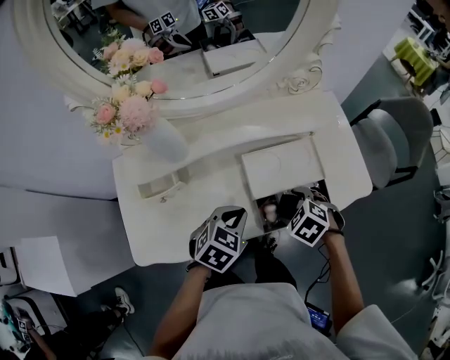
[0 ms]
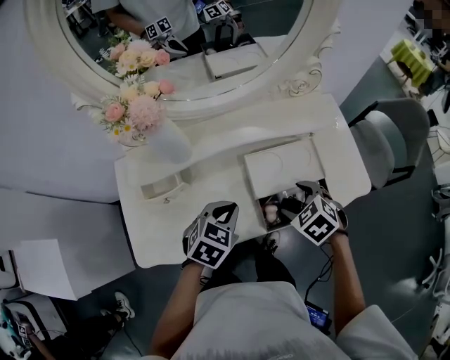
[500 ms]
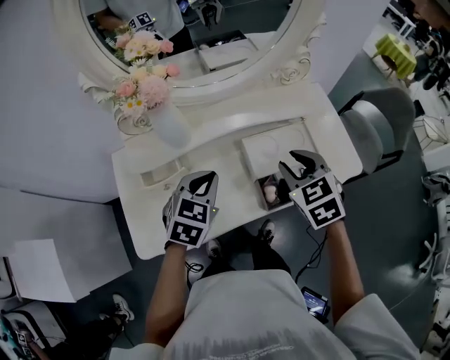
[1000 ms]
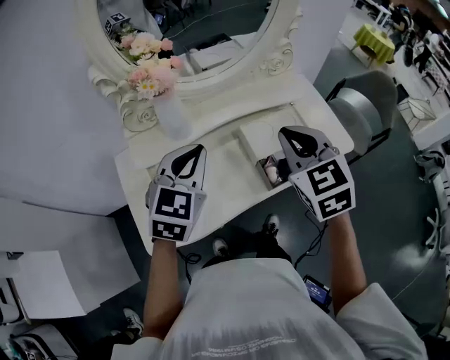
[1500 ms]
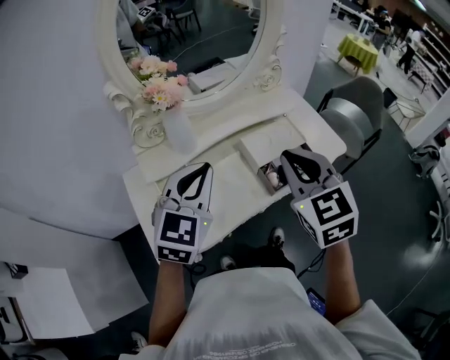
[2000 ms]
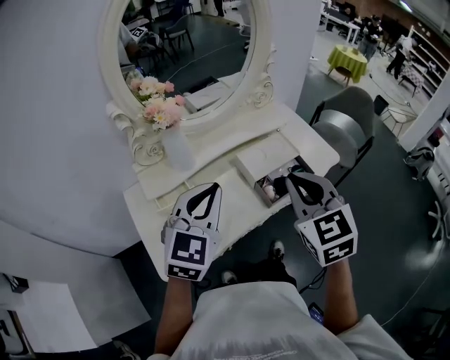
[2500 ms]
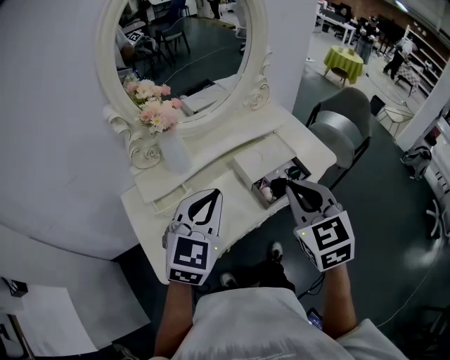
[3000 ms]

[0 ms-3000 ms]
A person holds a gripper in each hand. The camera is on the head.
0 ms to 1500 ms: The right gripper shifts some 30 cm upward, tips its fingers upward by about 40 degrees, and closes its fingers, while the left gripper travels upward and to the left by roughly 25 cm, and turns by about 30 degrees.
1500 ms to 3000 ms: Both grippers travel together backward, approximately 10 cm.

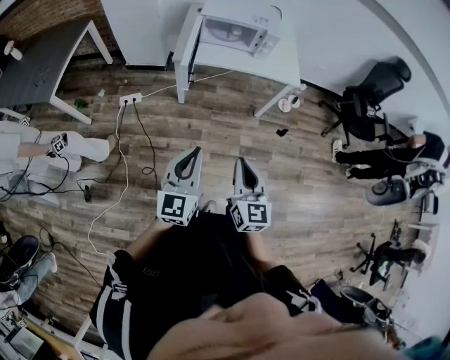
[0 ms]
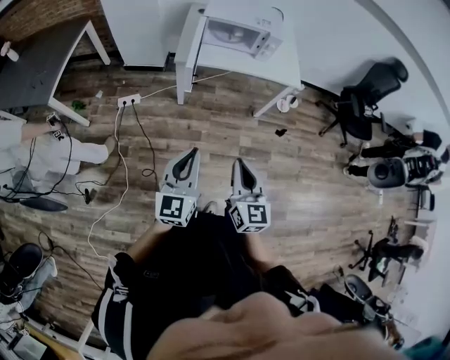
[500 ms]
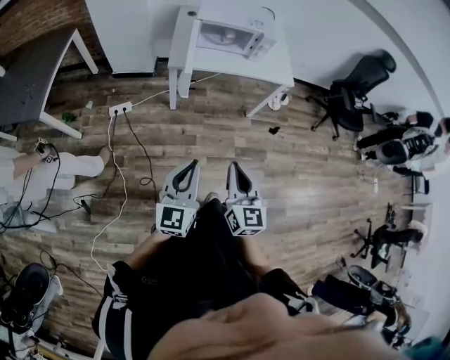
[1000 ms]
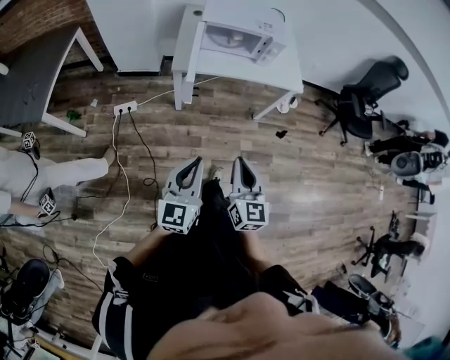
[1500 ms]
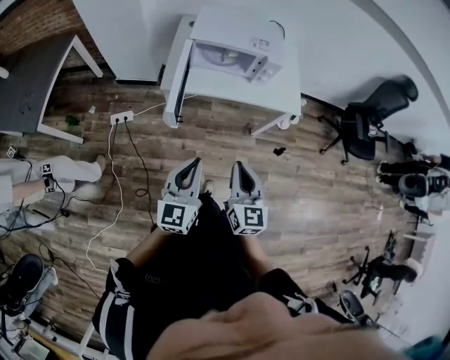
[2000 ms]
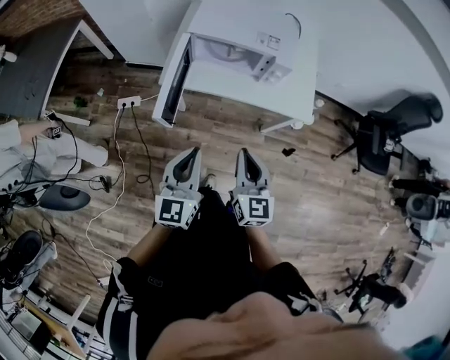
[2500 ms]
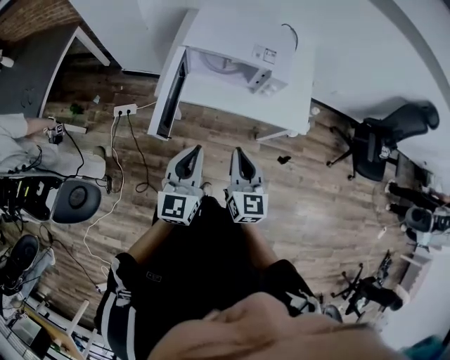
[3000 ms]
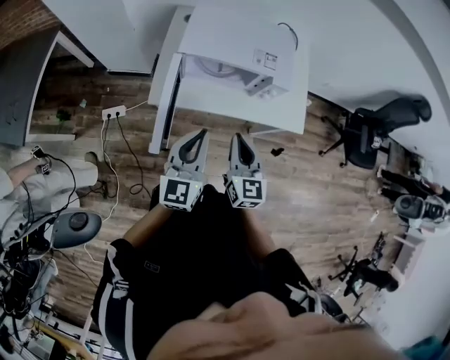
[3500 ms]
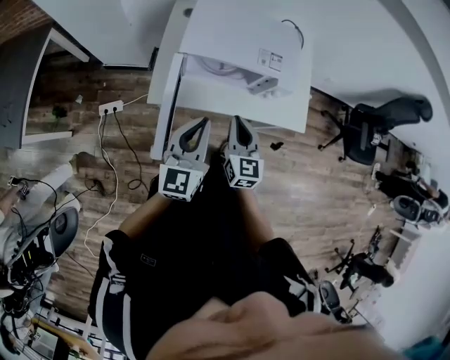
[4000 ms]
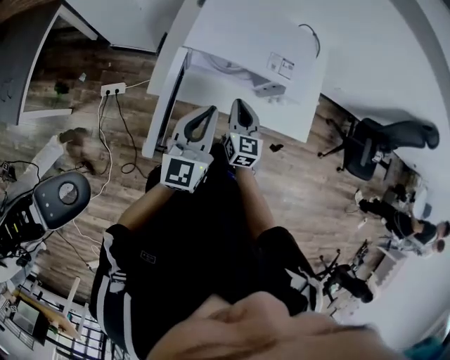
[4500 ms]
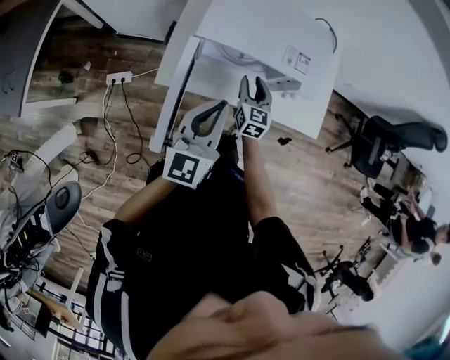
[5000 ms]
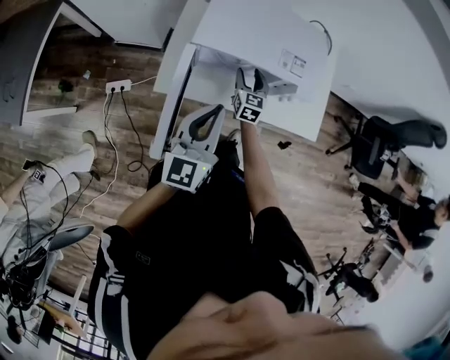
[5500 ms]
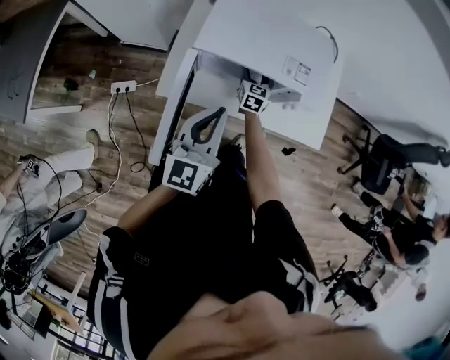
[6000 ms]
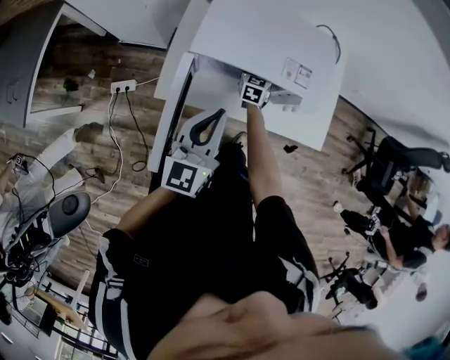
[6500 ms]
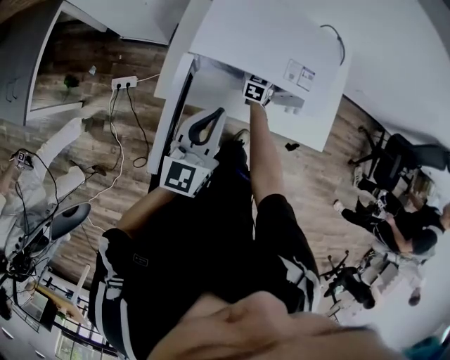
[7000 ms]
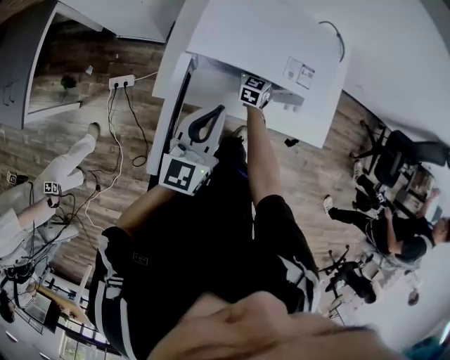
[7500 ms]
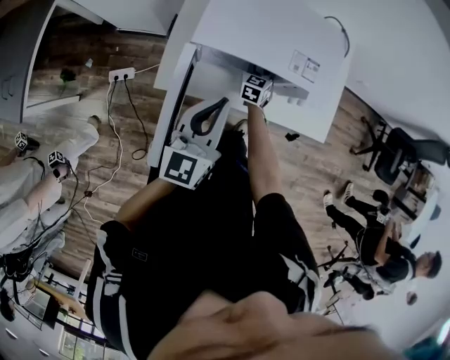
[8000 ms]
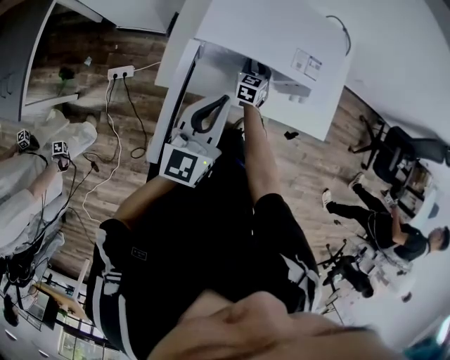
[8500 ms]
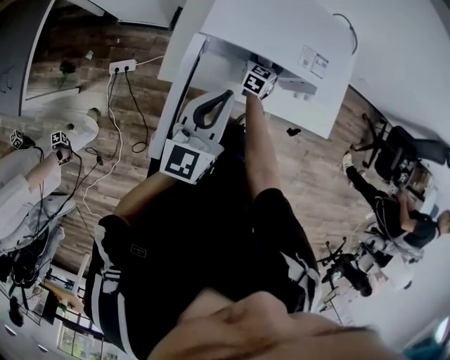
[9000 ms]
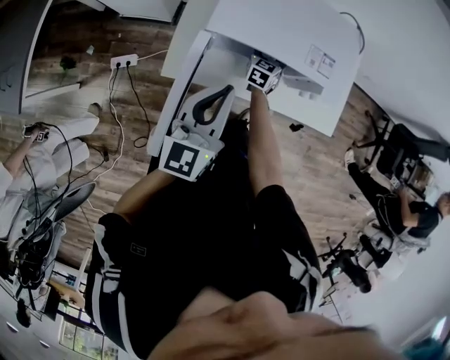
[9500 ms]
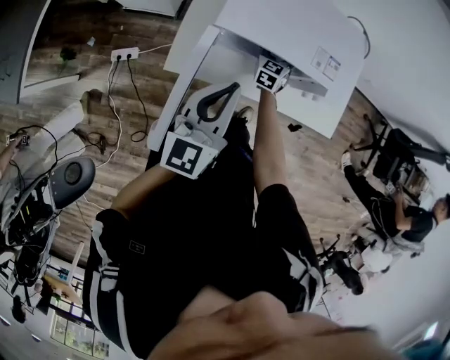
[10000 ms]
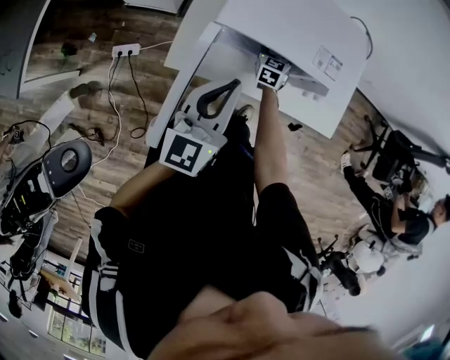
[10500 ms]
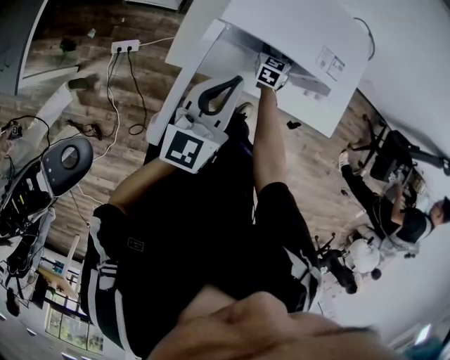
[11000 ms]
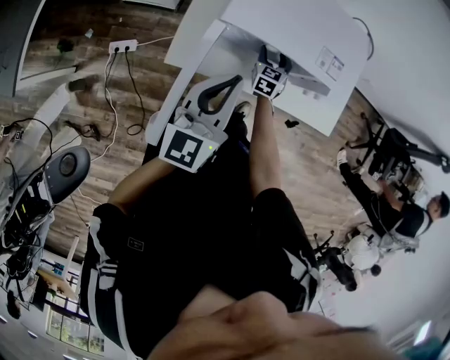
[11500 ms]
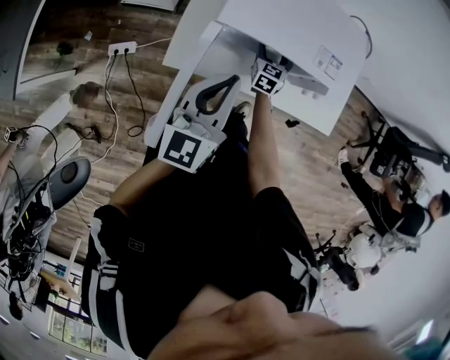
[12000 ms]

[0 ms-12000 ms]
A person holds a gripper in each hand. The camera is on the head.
0 ms to 2000 ms: Both grippers travel together forward, approximately 20 cm.
2000 ms to 4000 ms: Both grippers travel together forward, approximately 30 cm.
4000 ms to 6000 ms: The left gripper heads forward, covering roughly 5 cm. The right gripper heads forward and downward, covering some 30 cm, and opens up.
6000 ms to 8000 ms: The right gripper closes its fingers.
8000 ms to 10000 ms: The right gripper opens.
10000 ms to 12000 ms: The grippers stay close to where they were, moving slightly.

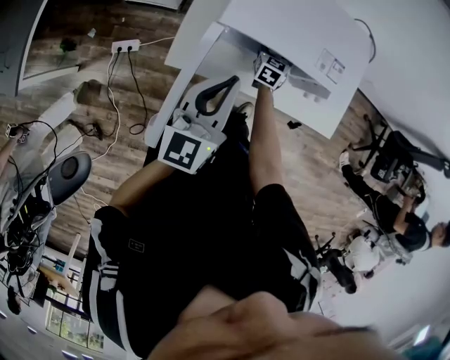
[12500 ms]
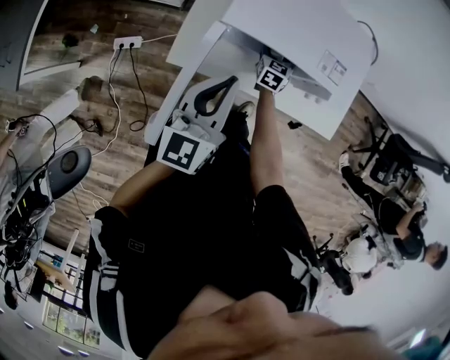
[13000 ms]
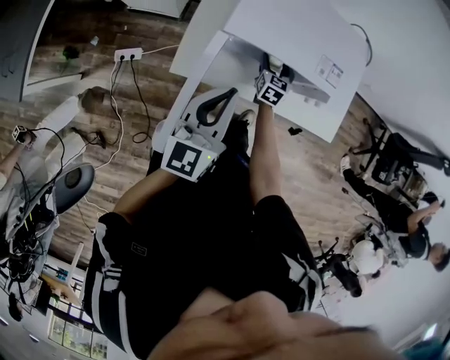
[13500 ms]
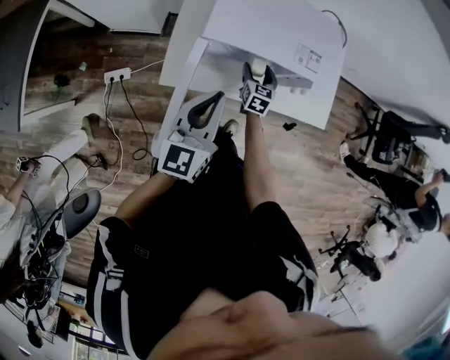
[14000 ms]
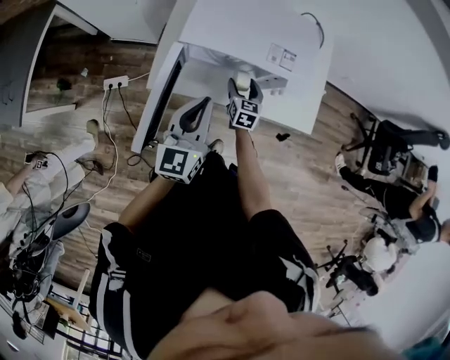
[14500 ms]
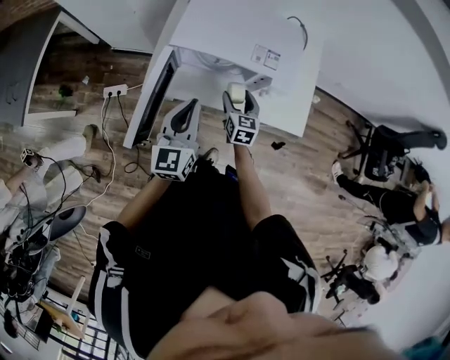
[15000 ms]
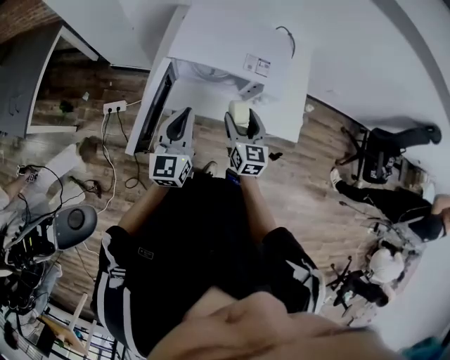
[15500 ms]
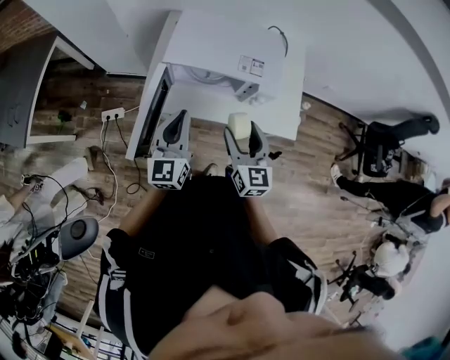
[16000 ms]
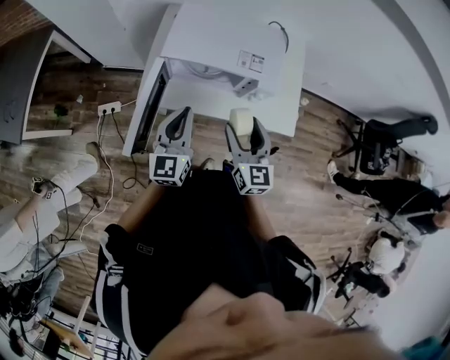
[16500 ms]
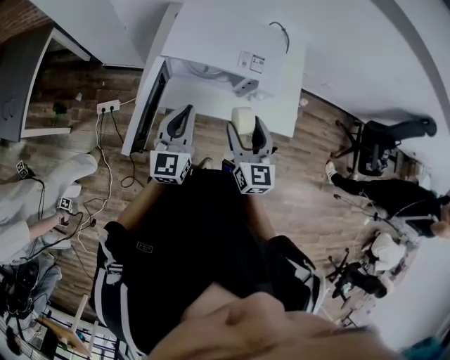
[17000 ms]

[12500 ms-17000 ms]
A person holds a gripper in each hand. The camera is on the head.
12500 ms to 14500 ms: The left gripper travels to the right by about 5 cm. Meanwhile the right gripper travels backward and upward by about 15 cm.
14500 ms to 17000 ms: The right gripper shifts some 30 cm upward and backward, and turns by roughly 20 degrees.

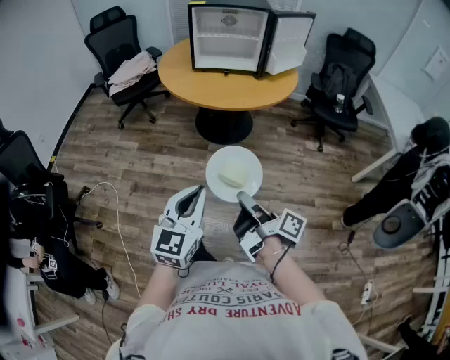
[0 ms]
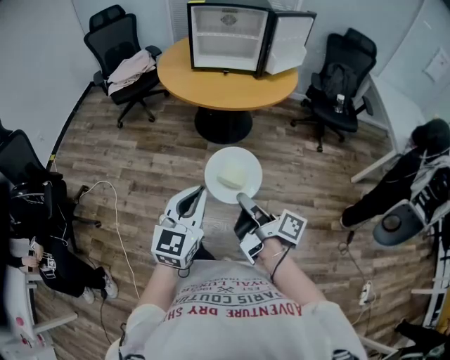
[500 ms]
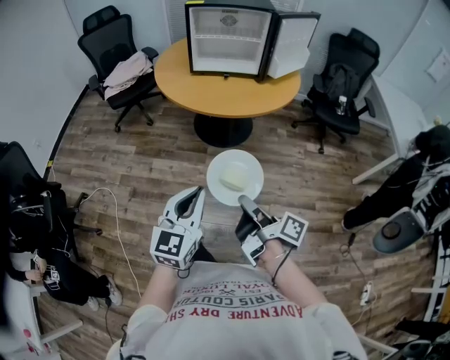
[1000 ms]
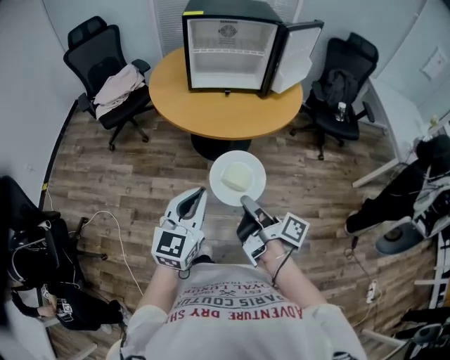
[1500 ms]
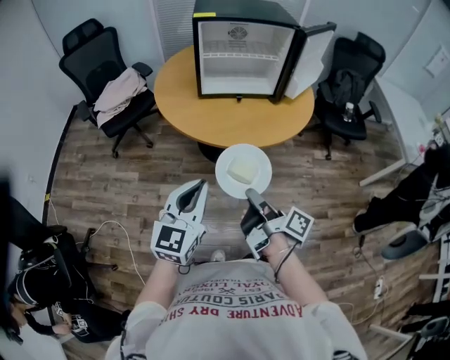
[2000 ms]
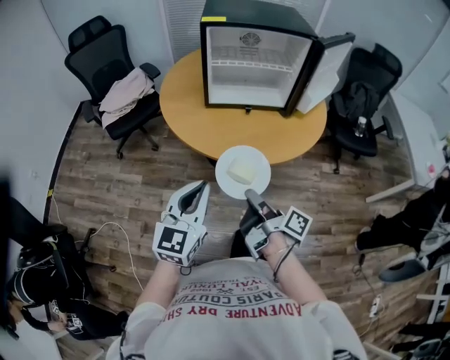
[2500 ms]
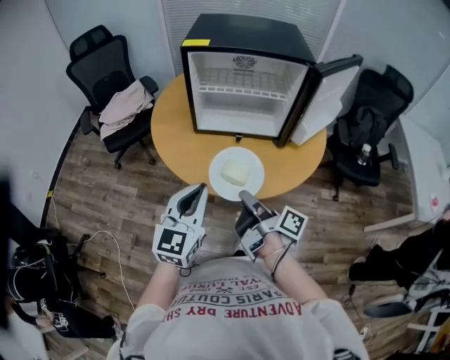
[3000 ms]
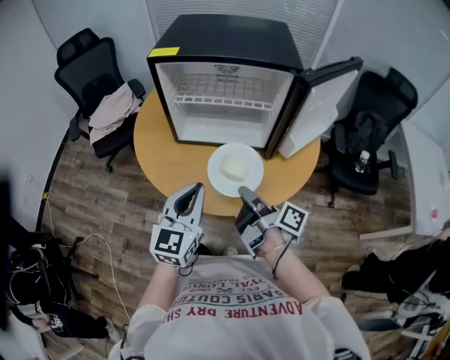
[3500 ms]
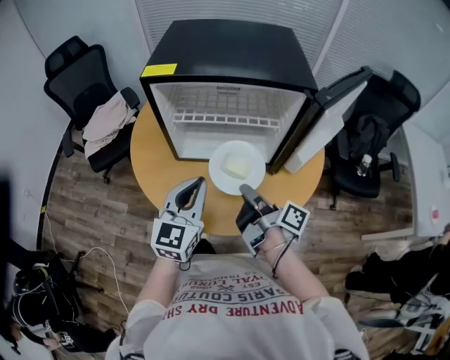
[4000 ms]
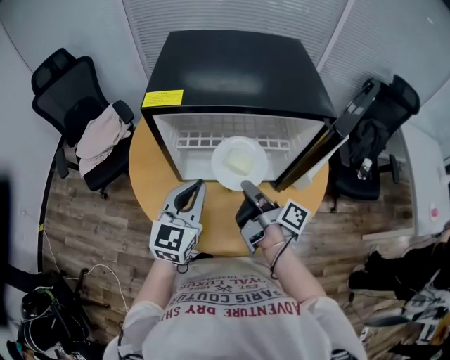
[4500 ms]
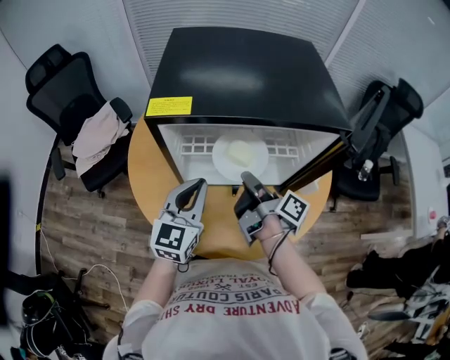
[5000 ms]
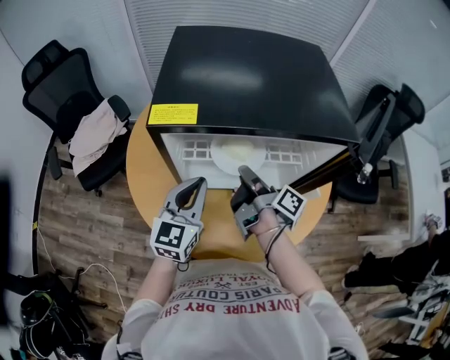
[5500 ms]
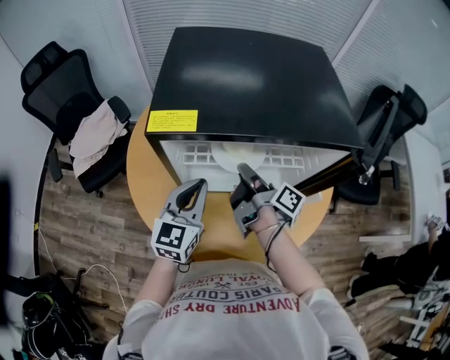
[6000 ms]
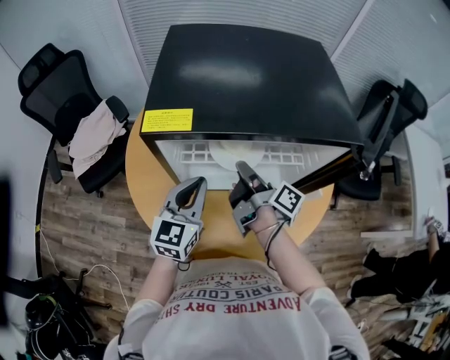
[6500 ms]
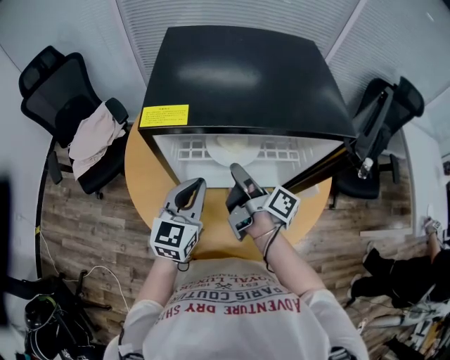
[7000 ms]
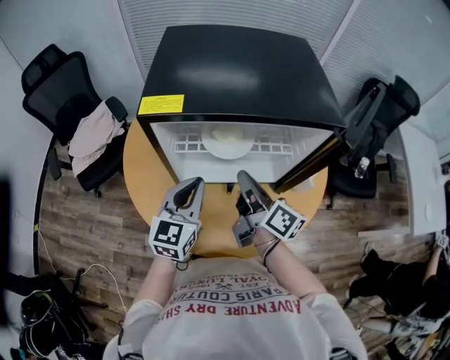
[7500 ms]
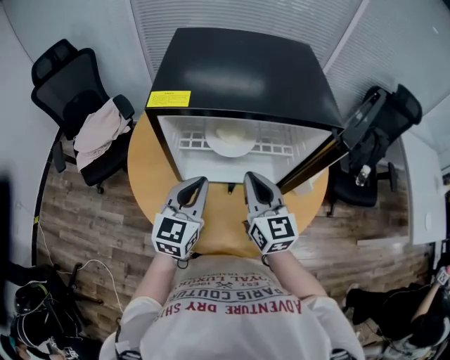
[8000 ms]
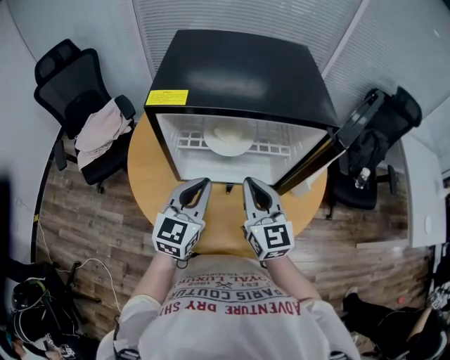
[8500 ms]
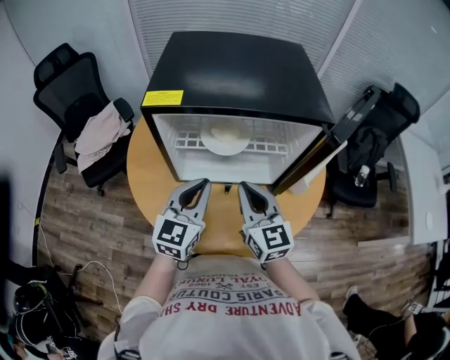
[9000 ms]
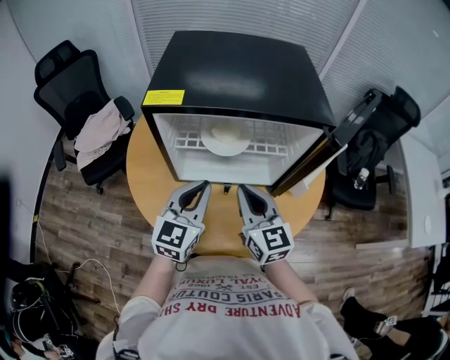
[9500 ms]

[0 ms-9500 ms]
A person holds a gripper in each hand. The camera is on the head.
0 ms to 2000 ms: The left gripper ends up approximately 30 cm from where it was.
2000 ms to 4000 ms: The left gripper shifts by approximately 40 cm.
4000 ms to 5500 ms: The left gripper ends up some 15 cm from where it was.
